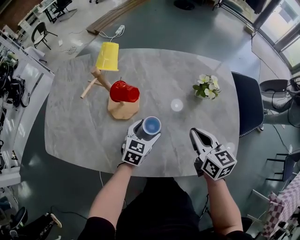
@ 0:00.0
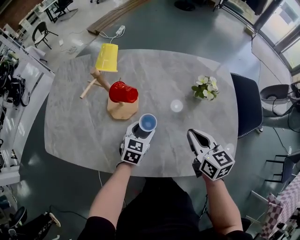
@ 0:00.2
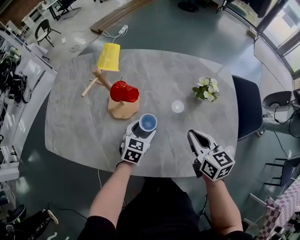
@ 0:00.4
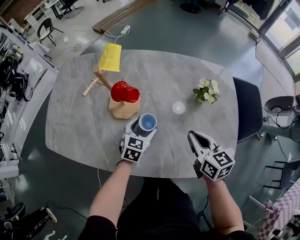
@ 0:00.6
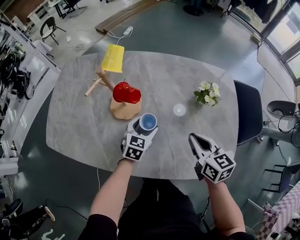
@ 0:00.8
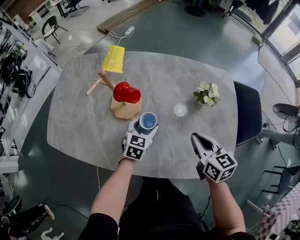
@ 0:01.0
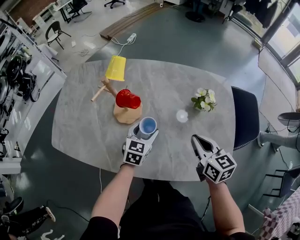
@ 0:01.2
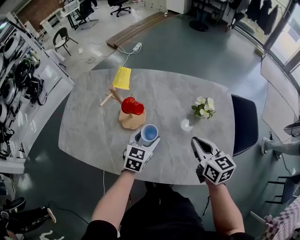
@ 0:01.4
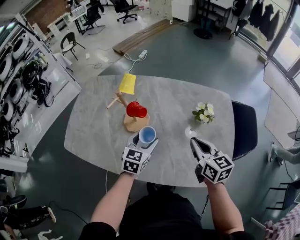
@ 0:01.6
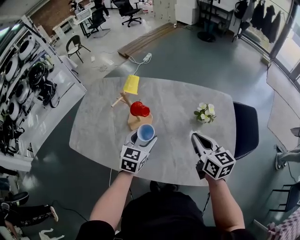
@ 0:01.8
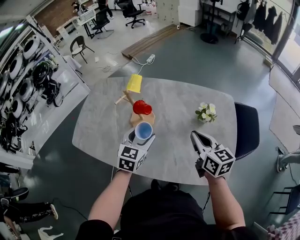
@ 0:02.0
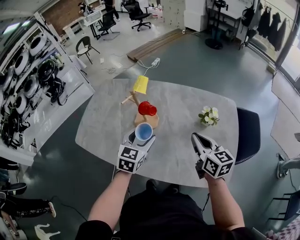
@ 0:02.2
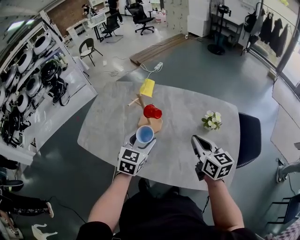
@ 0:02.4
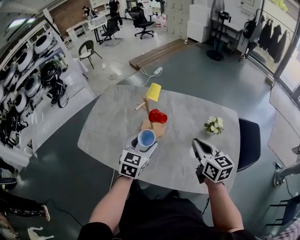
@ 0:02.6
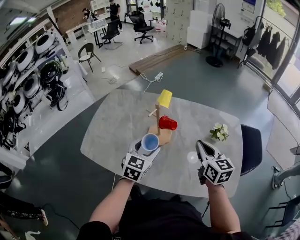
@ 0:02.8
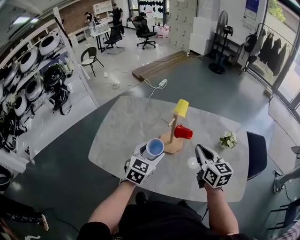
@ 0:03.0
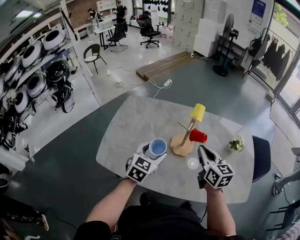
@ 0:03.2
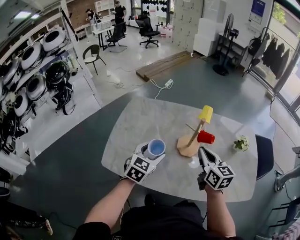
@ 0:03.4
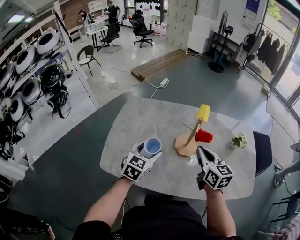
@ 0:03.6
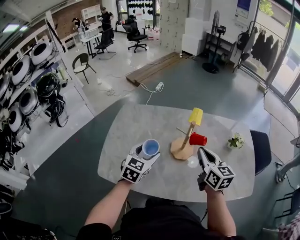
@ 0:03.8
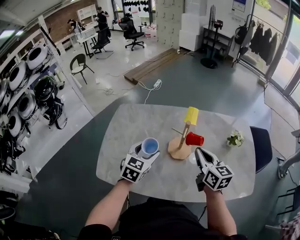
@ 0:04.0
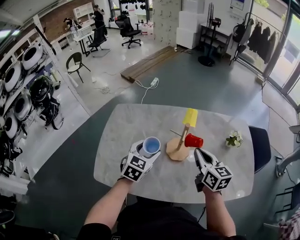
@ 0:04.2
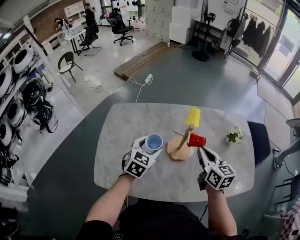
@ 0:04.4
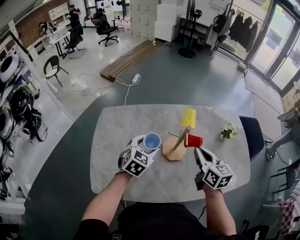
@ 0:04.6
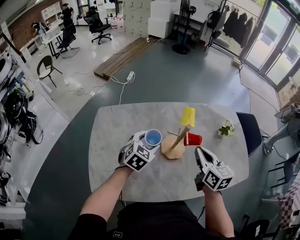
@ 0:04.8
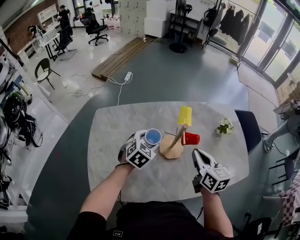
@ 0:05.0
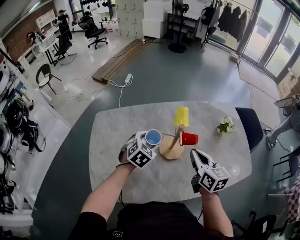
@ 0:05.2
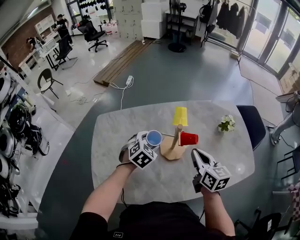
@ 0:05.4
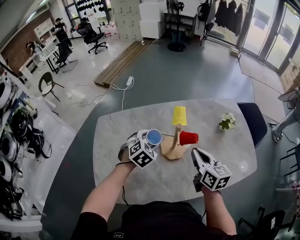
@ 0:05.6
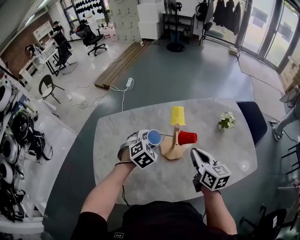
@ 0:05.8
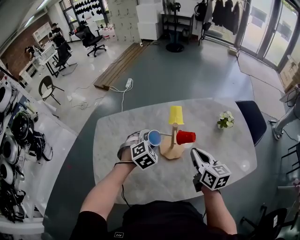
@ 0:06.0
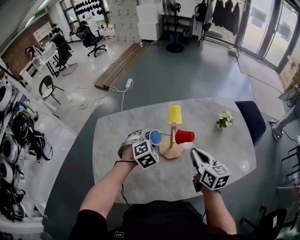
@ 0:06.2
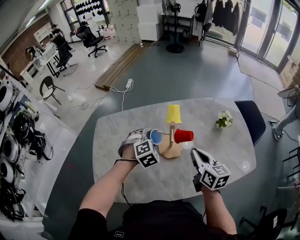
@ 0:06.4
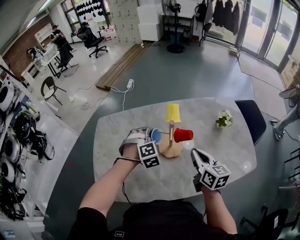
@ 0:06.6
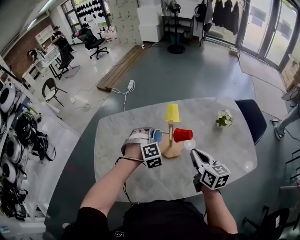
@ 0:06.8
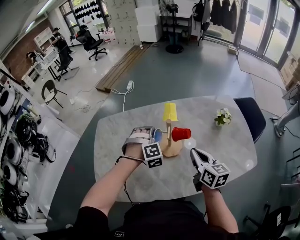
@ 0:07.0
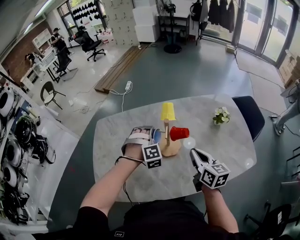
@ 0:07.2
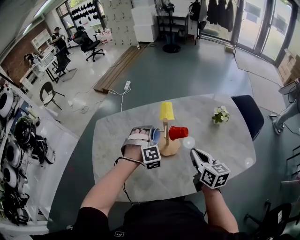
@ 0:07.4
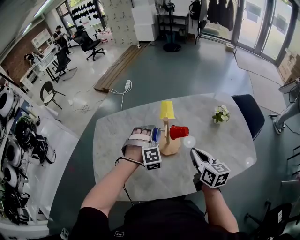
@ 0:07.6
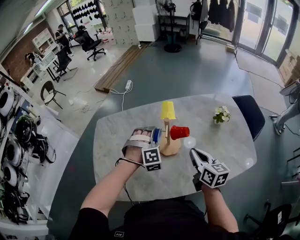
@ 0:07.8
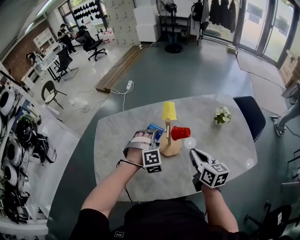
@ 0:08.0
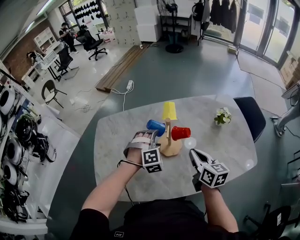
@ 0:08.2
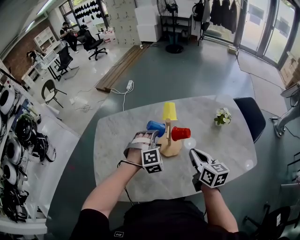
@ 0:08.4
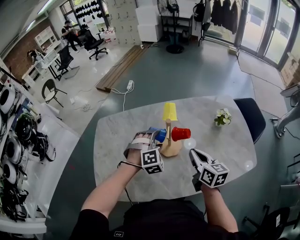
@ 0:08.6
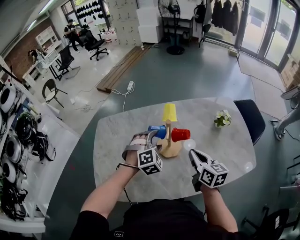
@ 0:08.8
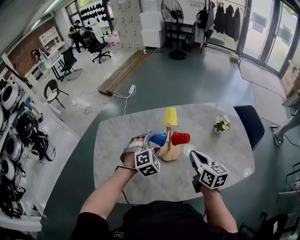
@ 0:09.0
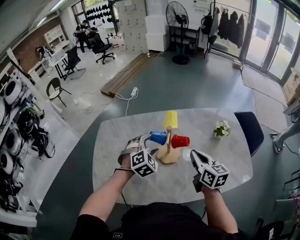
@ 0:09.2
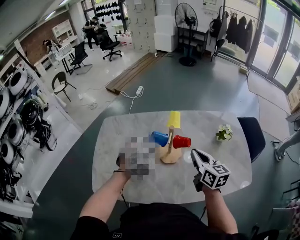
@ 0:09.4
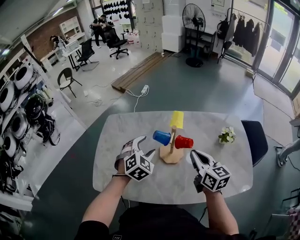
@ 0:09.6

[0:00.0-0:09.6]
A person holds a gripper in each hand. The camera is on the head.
0:00.0 to 0:01.6: The left gripper goes about 15 cm upward; the right gripper shifts roughly 10 cm upward.
0:01.6 to 0:03.2: The left gripper goes roughly 25 cm to the left and upward. The right gripper heads to the left, covering roughly 25 cm.
0:03.2 to 0:04.8: The right gripper changes its angle by roughly 20 degrees, while the left gripper is displaced forward by some 15 cm, and turns by approximately 30 degrees.
0:04.8 to 0:06.4: The left gripper changes place by some 5 cm, and swivels roughly 40 degrees.
0:06.4 to 0:08.0: The left gripper rotates some 20 degrees.
0:08.0 to 0:09.6: The right gripper changes place by roughly 5 cm; the left gripper heads upward and to the left, covering approximately 10 cm, and twists about 40 degrees counterclockwise, seen from behind.

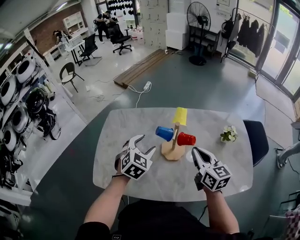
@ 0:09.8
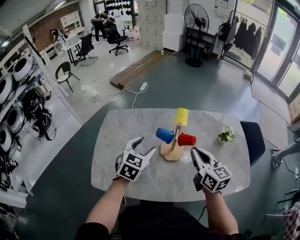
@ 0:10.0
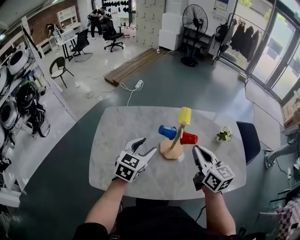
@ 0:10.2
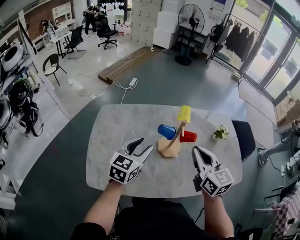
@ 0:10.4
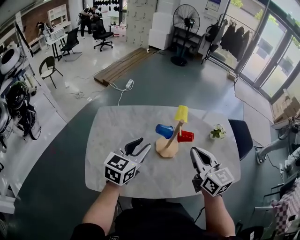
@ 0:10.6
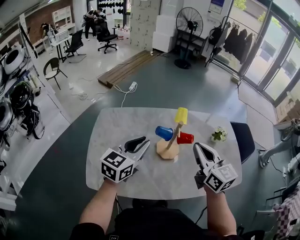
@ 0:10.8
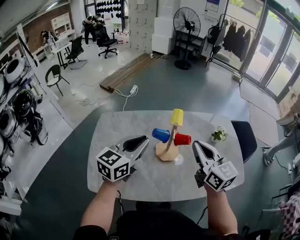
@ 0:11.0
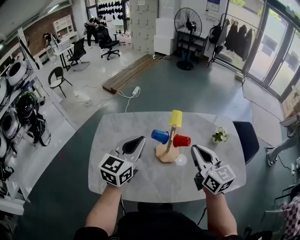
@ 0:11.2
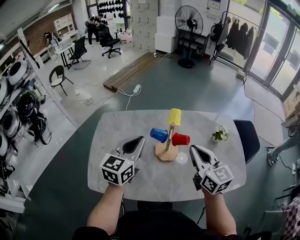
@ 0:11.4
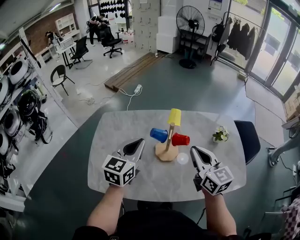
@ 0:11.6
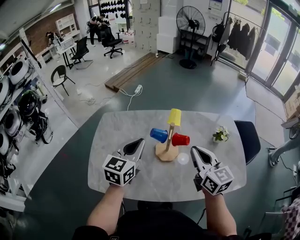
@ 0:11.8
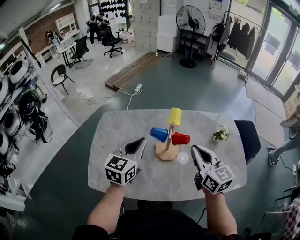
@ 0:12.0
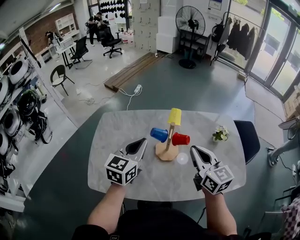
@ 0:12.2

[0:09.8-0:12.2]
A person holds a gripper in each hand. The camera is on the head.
0:09.8 to 0:11.0: Both grippers travel together upward, roughly 10 cm. The left gripper changes its angle by about 40 degrees, and closes up.
0:11.0 to 0:12.2: The grippers stay close to where they were, moving slightly.

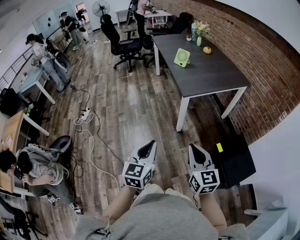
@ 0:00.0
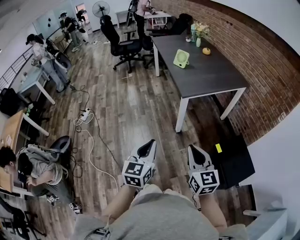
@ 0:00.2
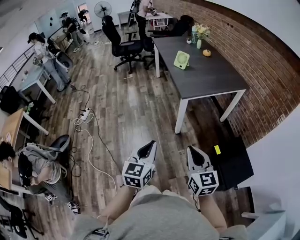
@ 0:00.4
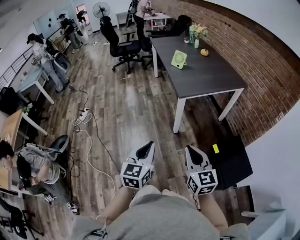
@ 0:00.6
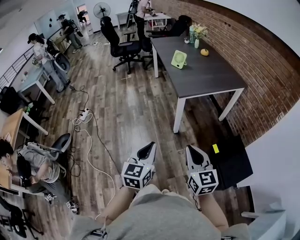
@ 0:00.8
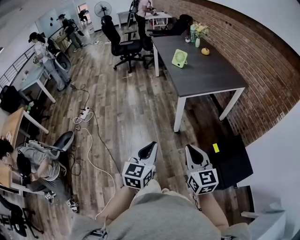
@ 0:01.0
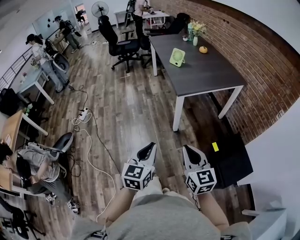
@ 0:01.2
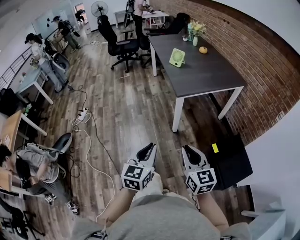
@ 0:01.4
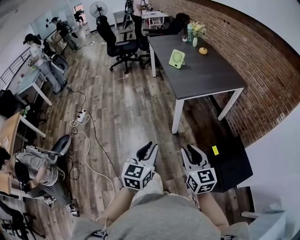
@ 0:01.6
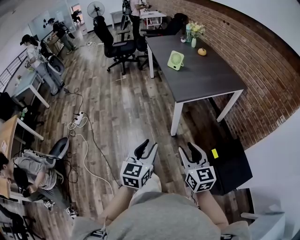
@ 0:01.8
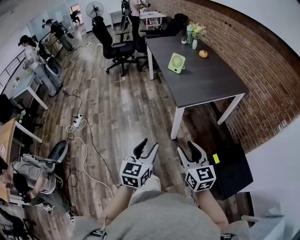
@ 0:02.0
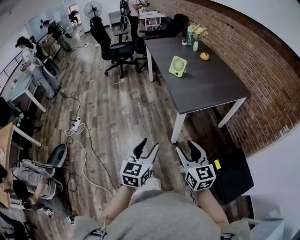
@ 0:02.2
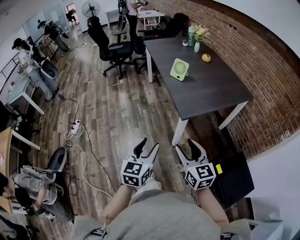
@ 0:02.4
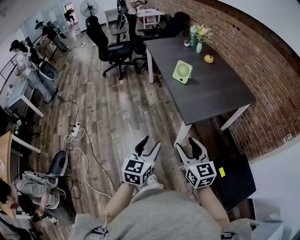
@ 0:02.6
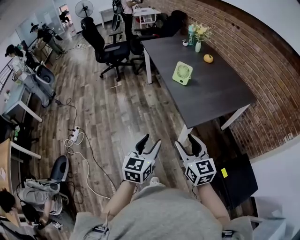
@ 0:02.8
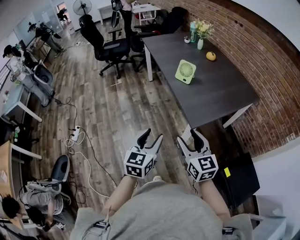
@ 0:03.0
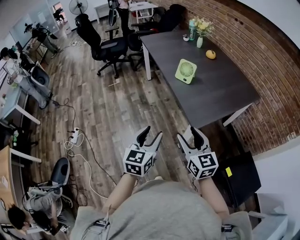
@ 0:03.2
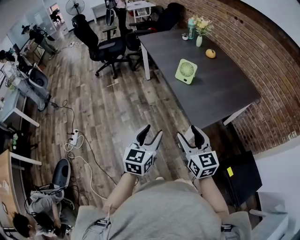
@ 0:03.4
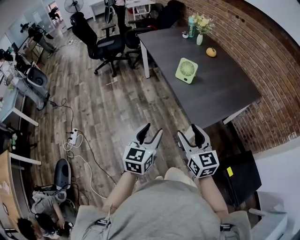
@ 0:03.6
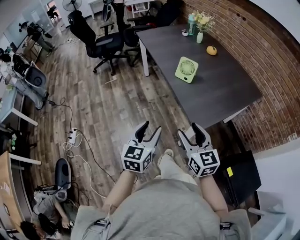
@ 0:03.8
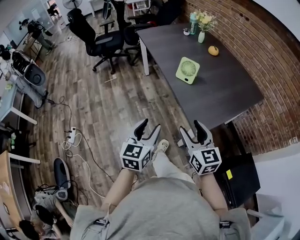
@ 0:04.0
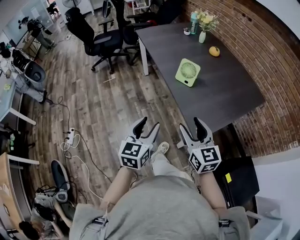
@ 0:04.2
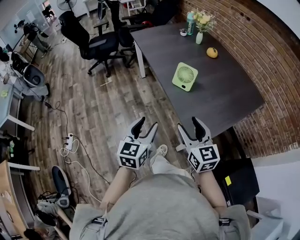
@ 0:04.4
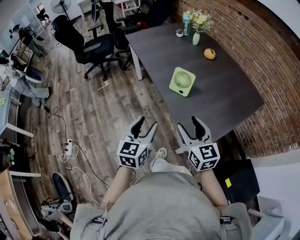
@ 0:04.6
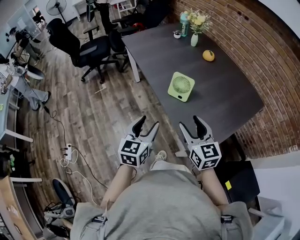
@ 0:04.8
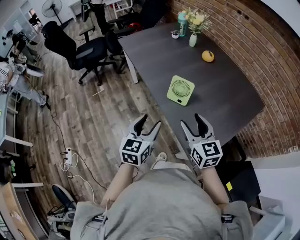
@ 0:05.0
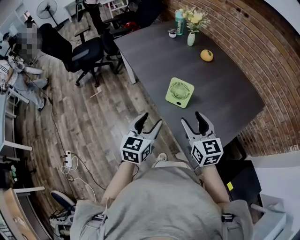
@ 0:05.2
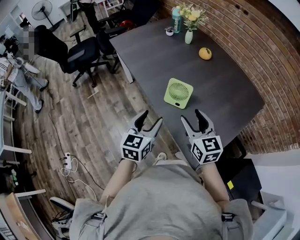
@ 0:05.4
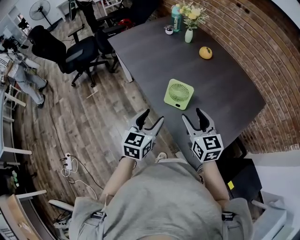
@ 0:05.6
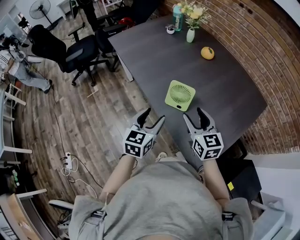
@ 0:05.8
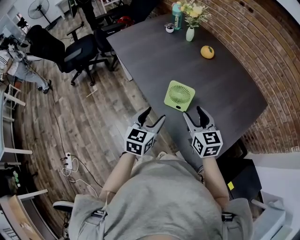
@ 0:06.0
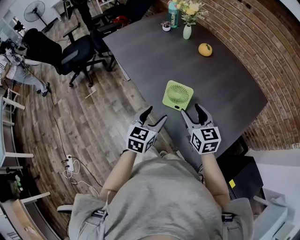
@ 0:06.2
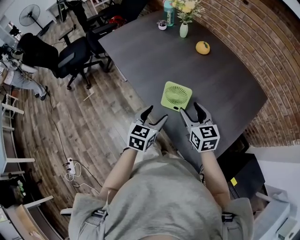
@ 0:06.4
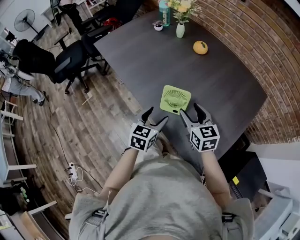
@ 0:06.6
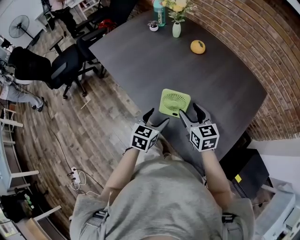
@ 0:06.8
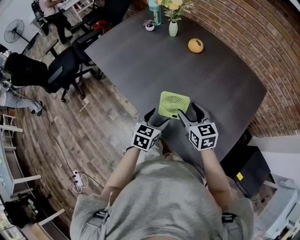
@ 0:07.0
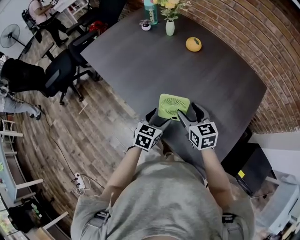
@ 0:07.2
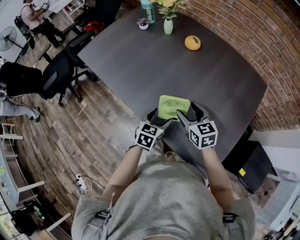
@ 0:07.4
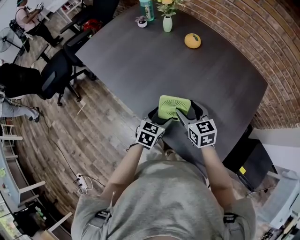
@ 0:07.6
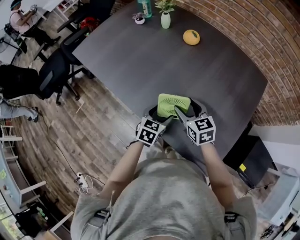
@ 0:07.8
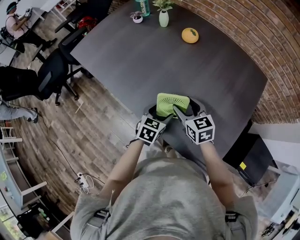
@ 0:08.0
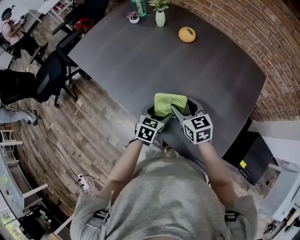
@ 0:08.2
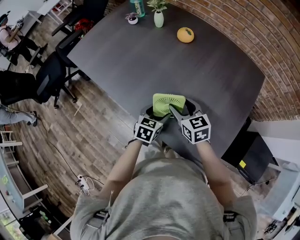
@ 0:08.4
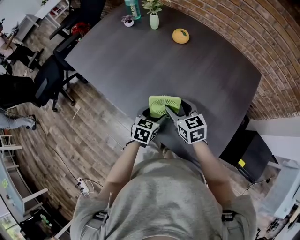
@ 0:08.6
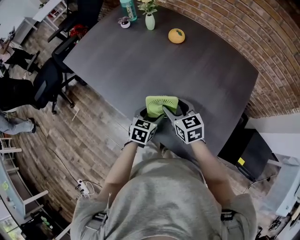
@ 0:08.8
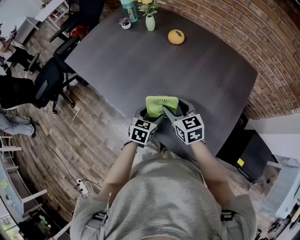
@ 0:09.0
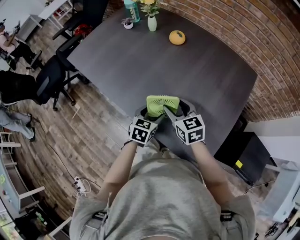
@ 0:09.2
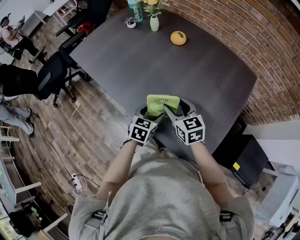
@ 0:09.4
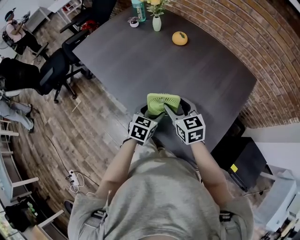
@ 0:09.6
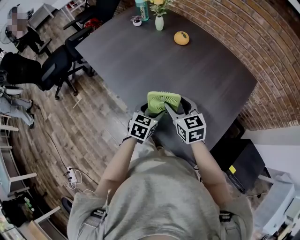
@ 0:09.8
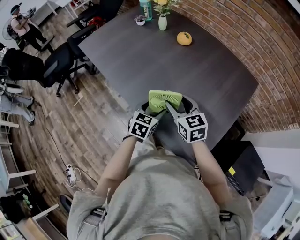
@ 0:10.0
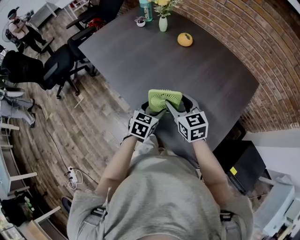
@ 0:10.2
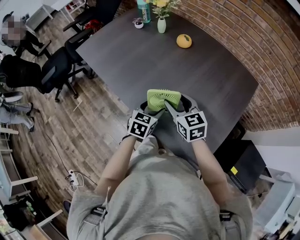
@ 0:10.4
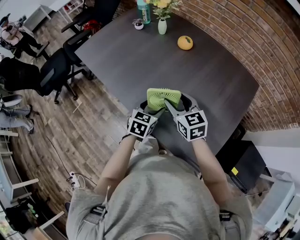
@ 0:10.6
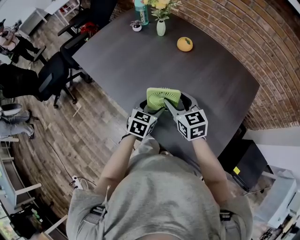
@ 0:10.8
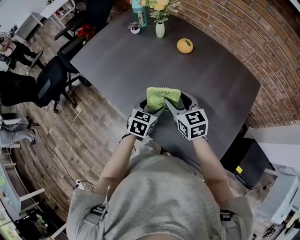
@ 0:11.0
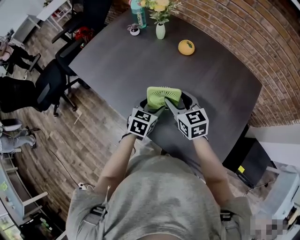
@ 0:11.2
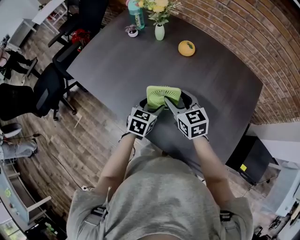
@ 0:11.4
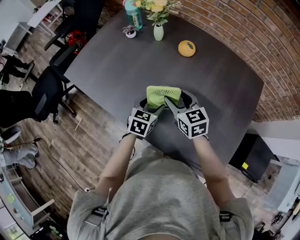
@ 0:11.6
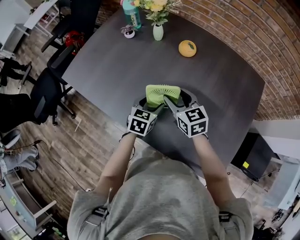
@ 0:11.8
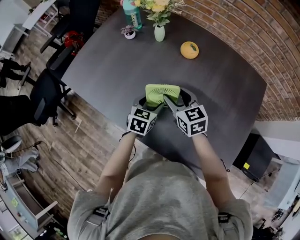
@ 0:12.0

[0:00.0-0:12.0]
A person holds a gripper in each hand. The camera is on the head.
0:00.0 to 0:01.6: The grippers stay close to where they were, moving slightly.
0:01.6 to 0:03.0: Both grippers move forward, approximately 35 cm. The right gripper opens its fingers. Meanwhile the left gripper opens its fingers.
0:03.0 to 0:04.4: The grippers both shift forward by some 20 cm.
0:04.4 to 0:06.0: Both grippers travel together forward, some 25 cm.
0:06.0 to 0:07.6: The grippers both shift forward and downward by approximately 15 cm. The left gripper rotates about 30 degrees.
0:07.6 to 0:09.0: There are only small adjustments of the grippers.
0:09.0 to 0:10.4: Both grippers travel together upward, approximately 5 cm.
0:10.4 to 0:12.0: The grippers both shift forward and to the left by roughly 20 cm.
